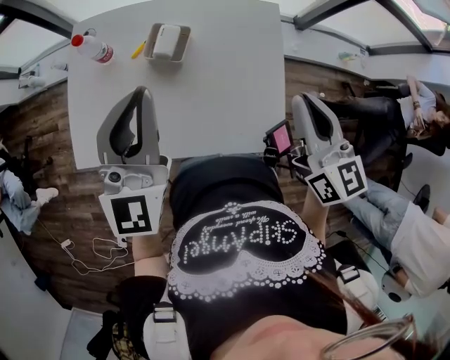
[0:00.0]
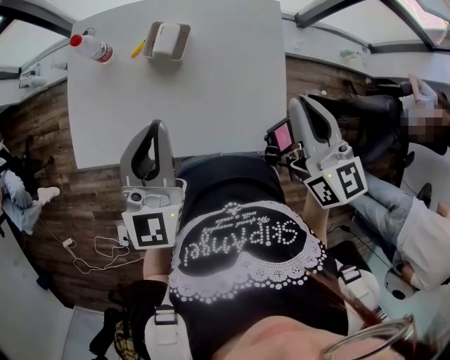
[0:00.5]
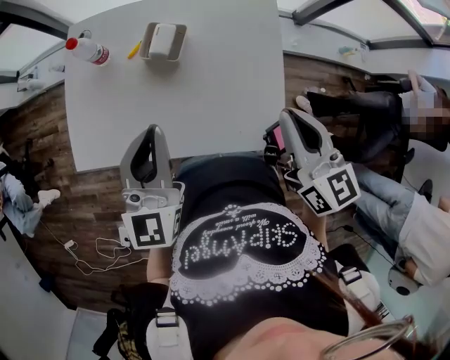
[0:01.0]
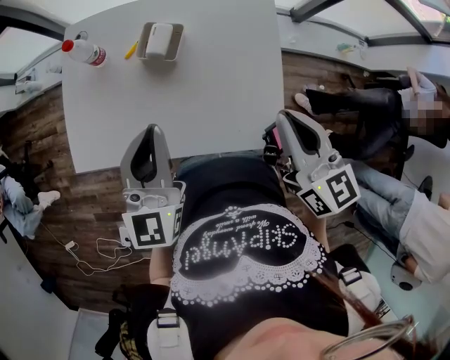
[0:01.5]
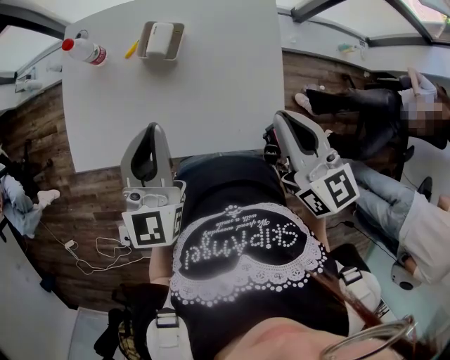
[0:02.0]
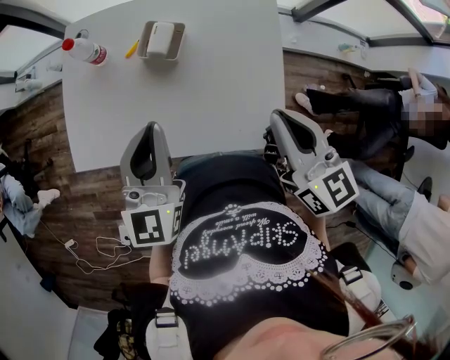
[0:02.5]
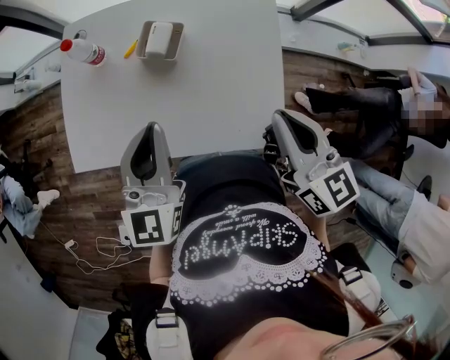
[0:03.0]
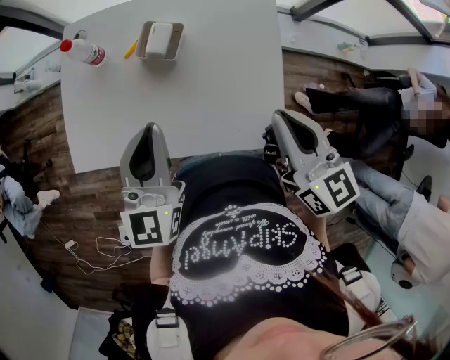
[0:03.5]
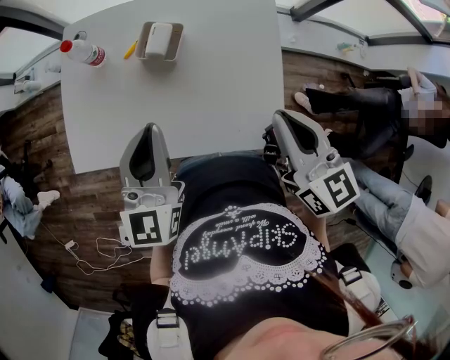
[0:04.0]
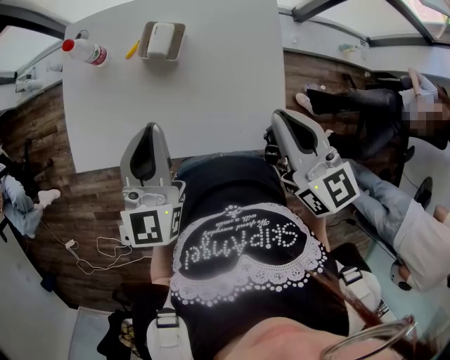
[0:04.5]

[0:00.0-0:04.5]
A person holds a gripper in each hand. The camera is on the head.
0:00.0 to 0:02.0: The right gripper changes place by some 5 cm; the left gripper moves downward, roughly 5 cm.
0:02.0 to 0:04.5: Neither gripper changes place.

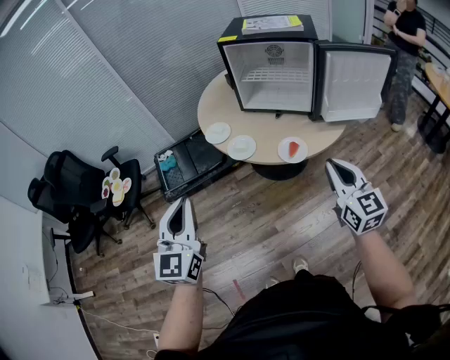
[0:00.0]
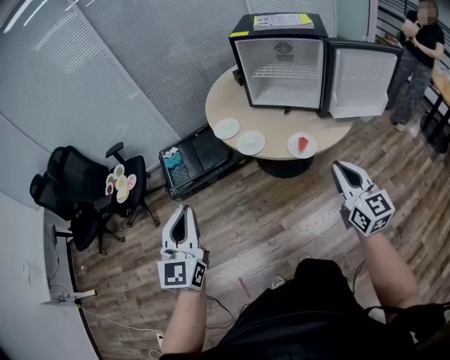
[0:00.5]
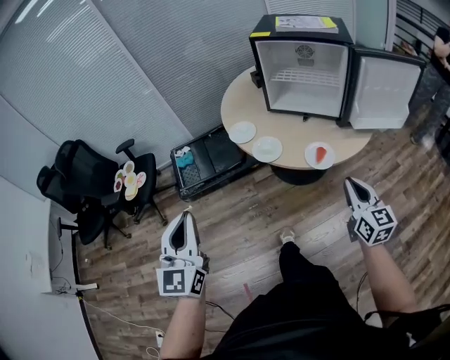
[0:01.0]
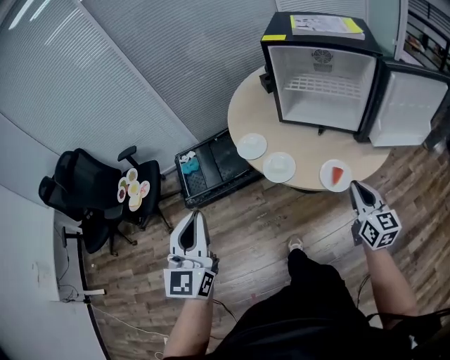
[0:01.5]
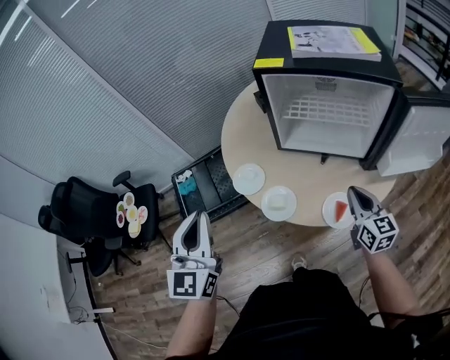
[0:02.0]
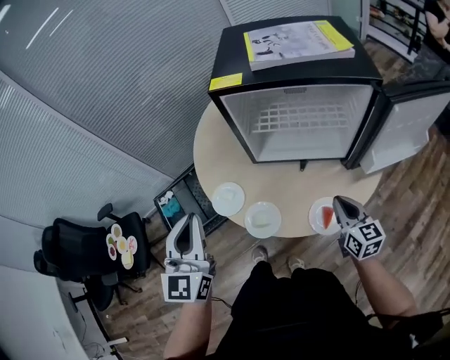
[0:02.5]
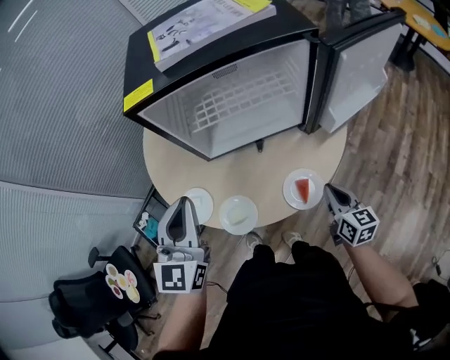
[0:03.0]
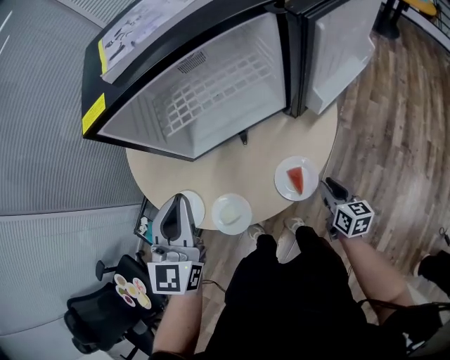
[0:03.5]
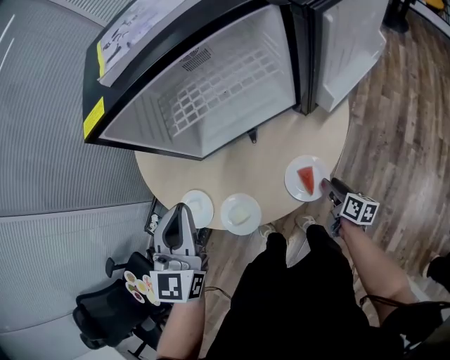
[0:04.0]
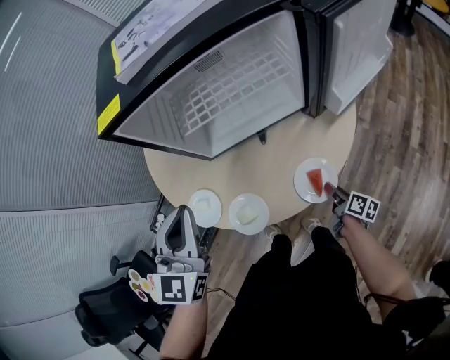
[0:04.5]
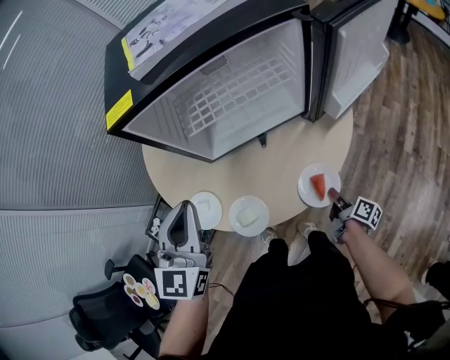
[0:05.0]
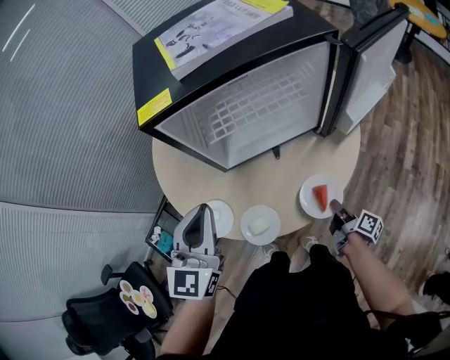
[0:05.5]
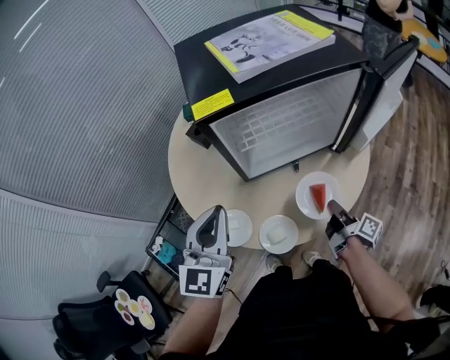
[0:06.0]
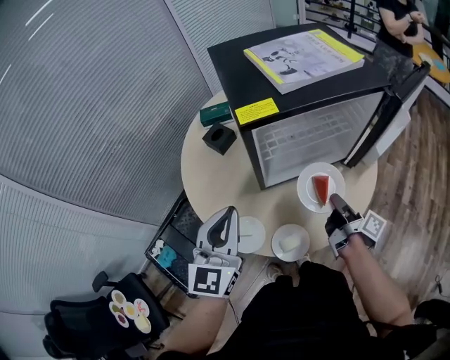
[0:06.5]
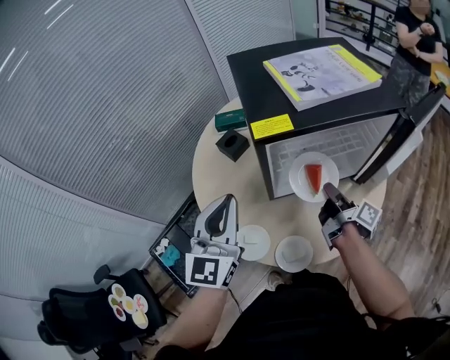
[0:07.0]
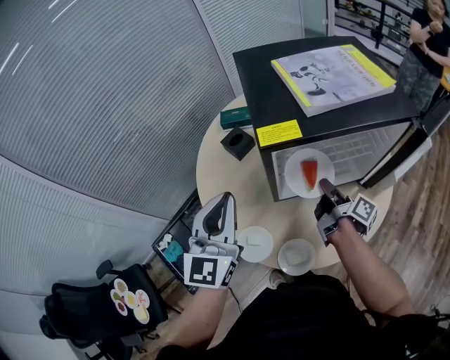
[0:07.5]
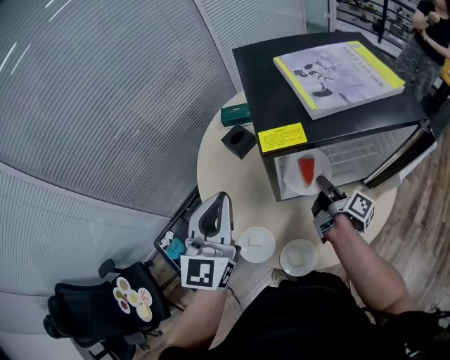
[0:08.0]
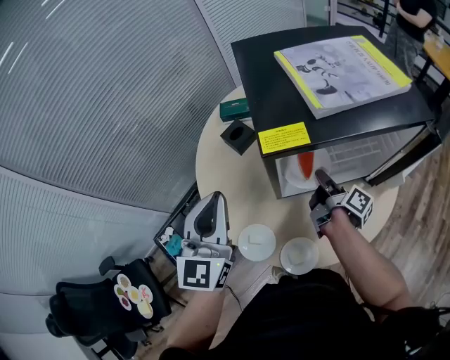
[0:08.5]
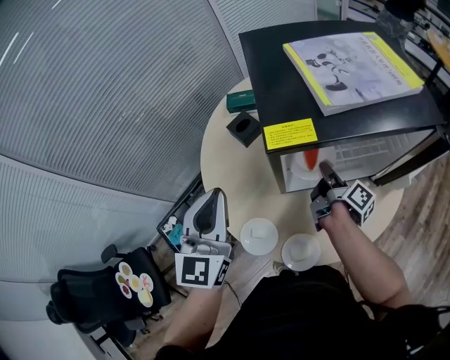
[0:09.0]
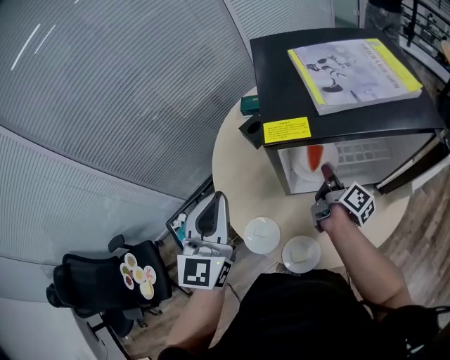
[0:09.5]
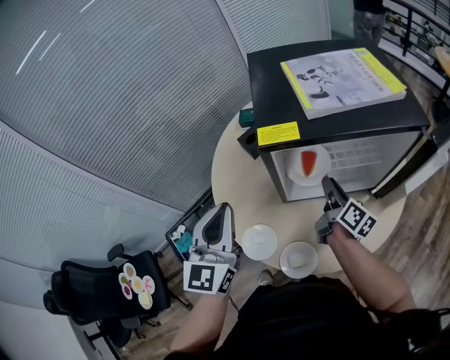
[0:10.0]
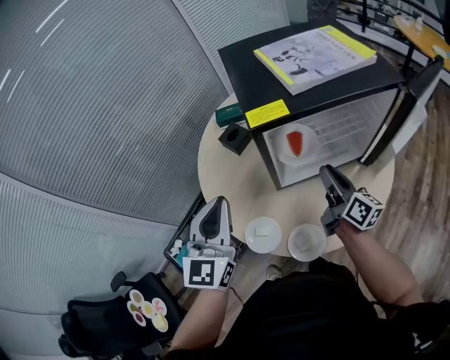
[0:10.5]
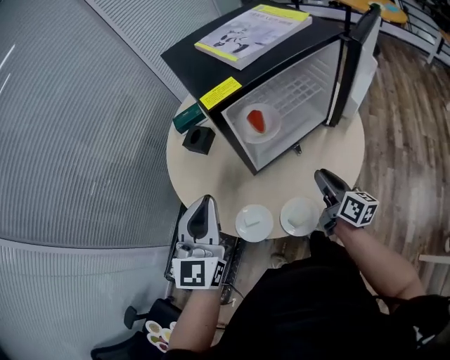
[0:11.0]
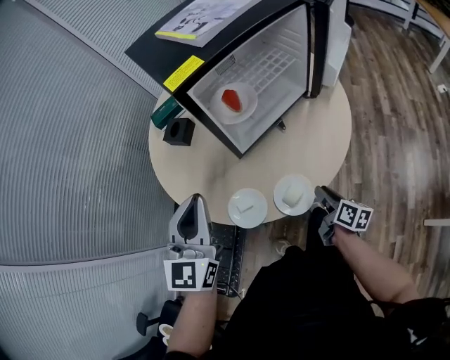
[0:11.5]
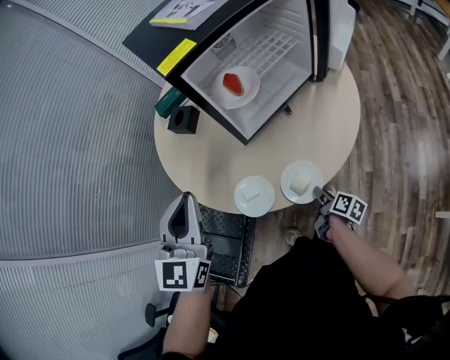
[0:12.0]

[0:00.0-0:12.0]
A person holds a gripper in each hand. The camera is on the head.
0:00.0 to 0:02.0: The left gripper moves forward, approximately 30 cm; the right gripper is displaced forward and downward by approximately 35 cm.
0:02.0 to 0:04.0: The left gripper shifts by about 25 cm, and swivels about 40 degrees. The right gripper goes about 25 cm downward, rolls clockwise, seen from behind, by about 50 degrees, and opens its fingers.
0:04.0 to 0:06.0: The left gripper travels to the left by approximately 10 cm; the right gripper goes roughly 20 cm upward and to the left, turns by some 30 degrees, and closes its fingers.
0:06.0 to 0:08.0: The left gripper travels forward, to the left and upward by roughly 15 cm. Meanwhile the right gripper shifts some 25 cm forward, to the left and upward.
0:08.0 to 0:10.0: The right gripper changes its angle by approximately 30 degrees, while the left gripper shifts some 5 cm backward.
0:10.0 to 0:12.0: The left gripper ends up about 10 cm from where it was, and turns by approximately 30 degrees. Meanwhile the right gripper moves some 40 cm, and changes its angle by roughly 40 degrees.

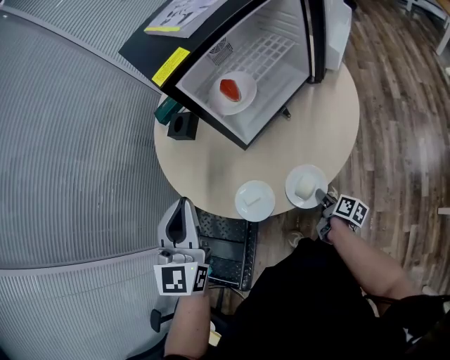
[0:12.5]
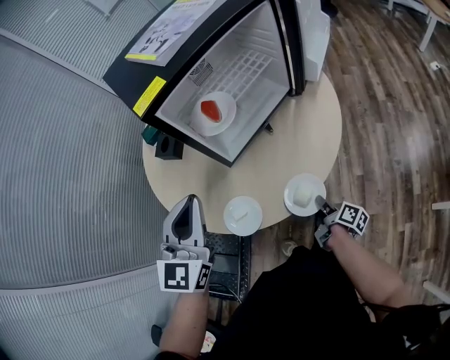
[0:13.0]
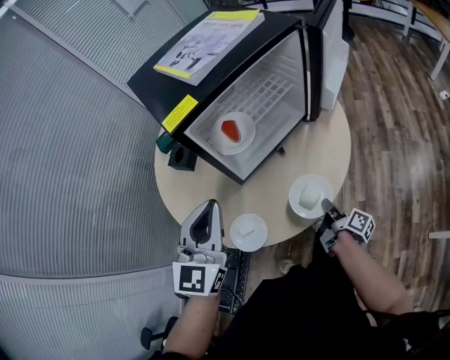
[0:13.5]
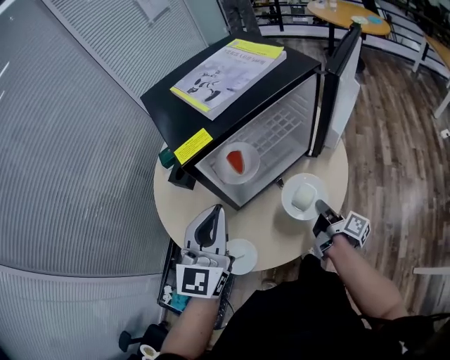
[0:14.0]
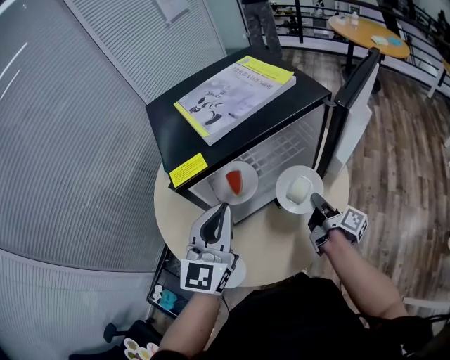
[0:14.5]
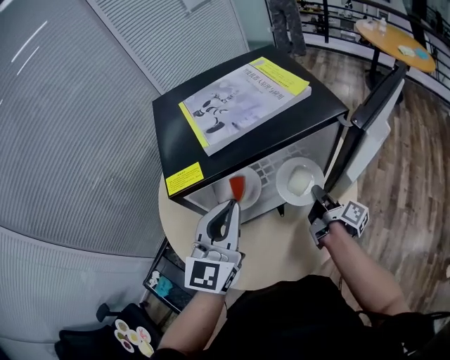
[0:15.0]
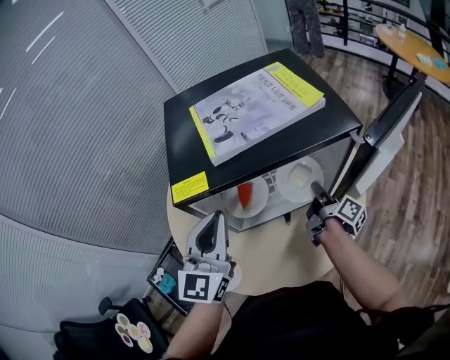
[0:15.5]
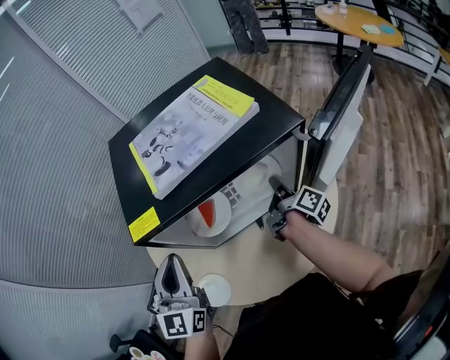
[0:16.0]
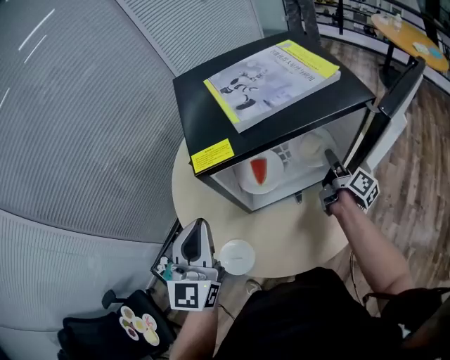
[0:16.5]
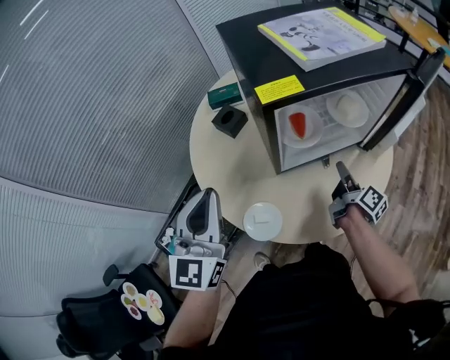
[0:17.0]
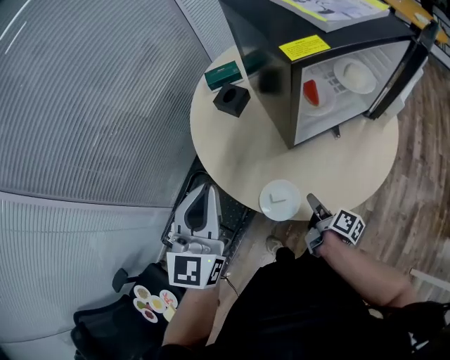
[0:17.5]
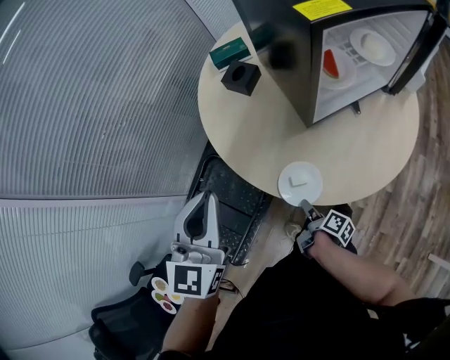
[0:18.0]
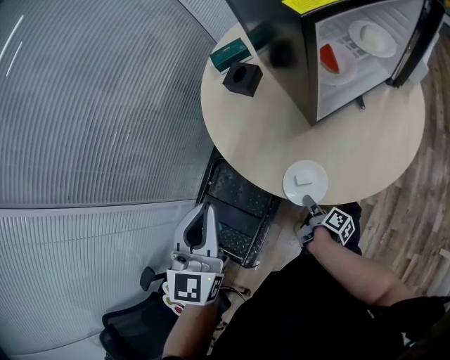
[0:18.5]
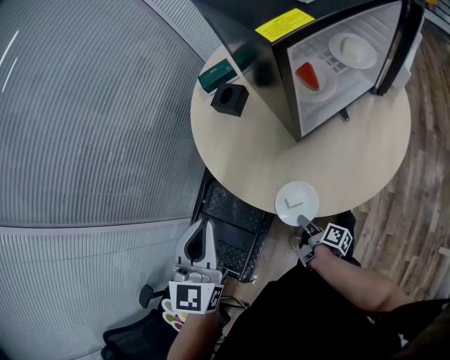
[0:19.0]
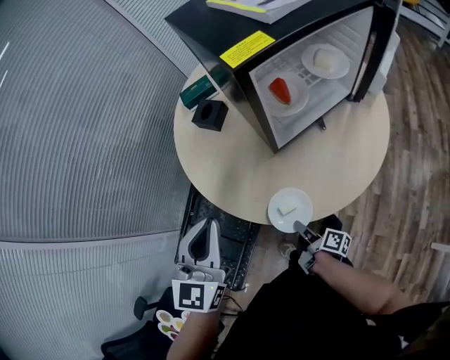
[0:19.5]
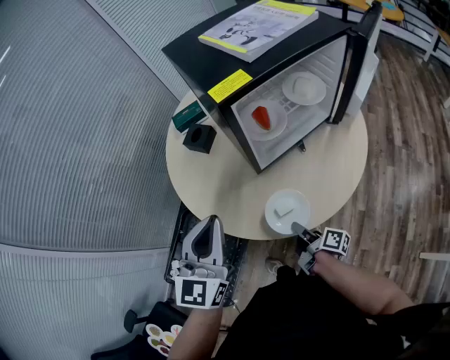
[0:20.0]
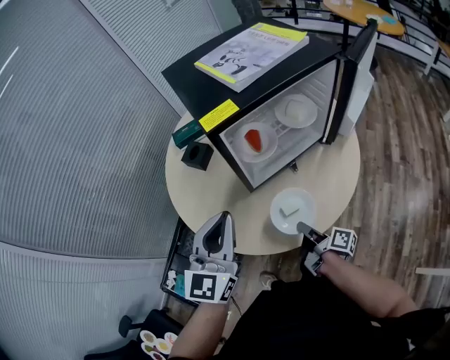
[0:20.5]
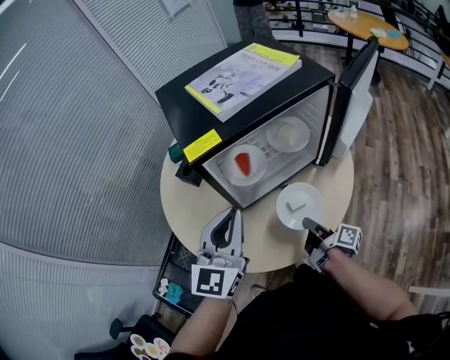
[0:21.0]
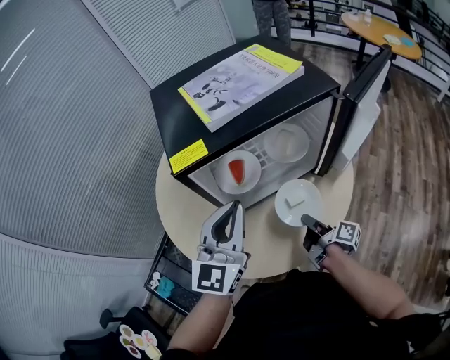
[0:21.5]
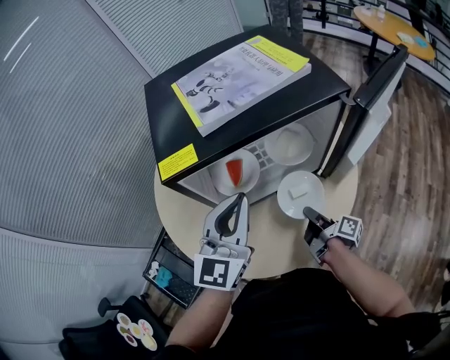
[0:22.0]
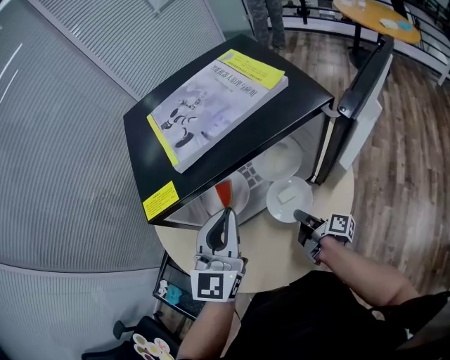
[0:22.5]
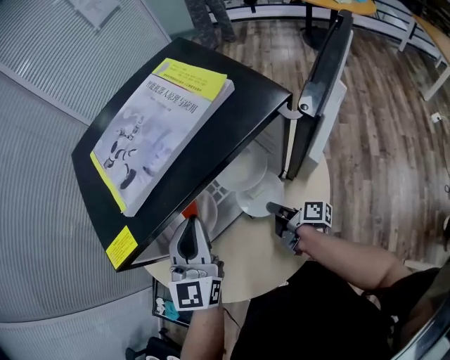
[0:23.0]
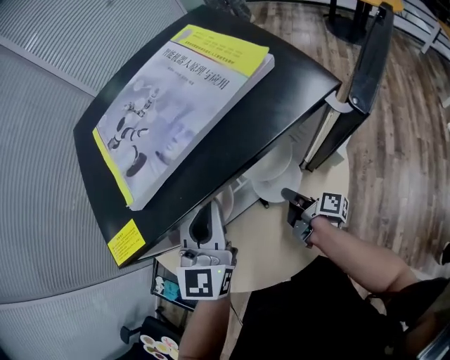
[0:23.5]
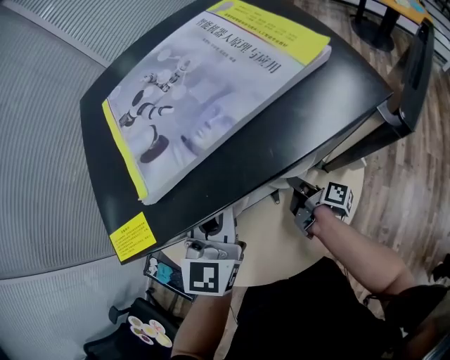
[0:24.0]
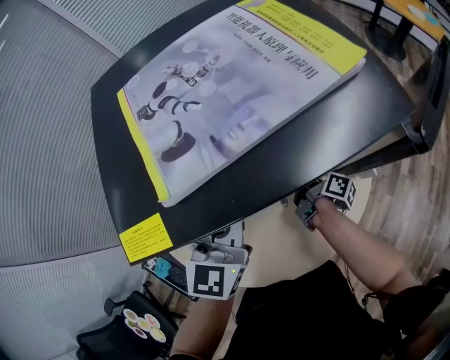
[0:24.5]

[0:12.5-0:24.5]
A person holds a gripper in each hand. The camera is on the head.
0:12.5 to 0:14.5: The left gripper heads forward and to the right, covering roughly 20 cm; the right gripper moves forward and upward, about 35 cm, rotates some 30 degrees, and closes up.
0:14.5 to 0:16.5: The right gripper is displaced forward by about 15 cm, and opens up; the left gripper shifts approximately 10 cm to the left, and rotates roughly 20 degrees.
0:16.5 to 0:18.5: The left gripper goes approximately 25 cm to the left and backward. Meanwhile the right gripper travels to the left, backward and downward by roughly 60 cm, and turns by some 40 degrees.
0:18.5 to 0:20.5: The left gripper goes about 20 cm to the right. The right gripper moves to the right and upward, roughly 25 cm, changes its angle by roughly 20 degrees, and closes up.
0:20.5 to 0:22.5: The left gripper goes some 20 cm to the right and forward. The right gripper heads forward and to the right, covering some 25 cm.
0:22.5 to 0:24.5: The left gripper goes roughly 10 cm forward; the right gripper heads forward, covering approximately 15 cm.
